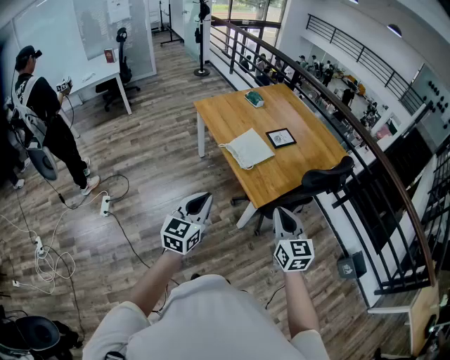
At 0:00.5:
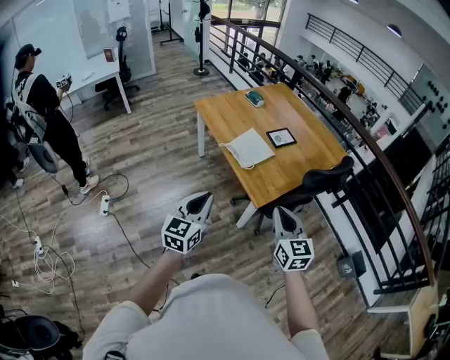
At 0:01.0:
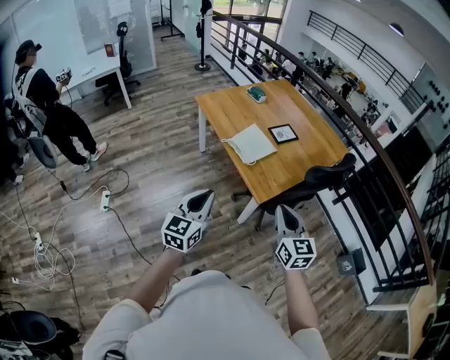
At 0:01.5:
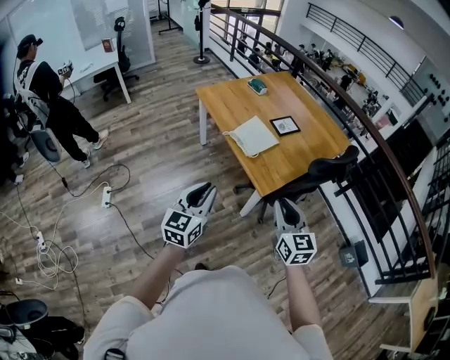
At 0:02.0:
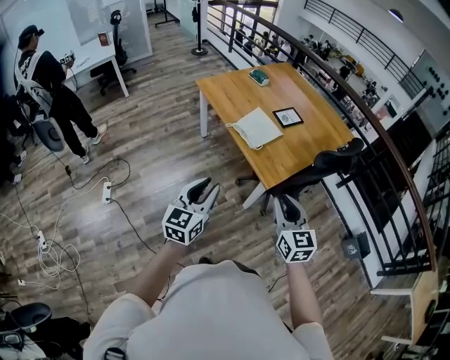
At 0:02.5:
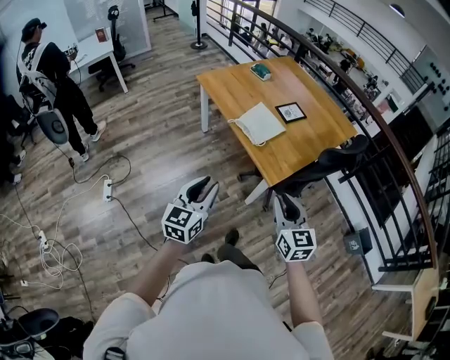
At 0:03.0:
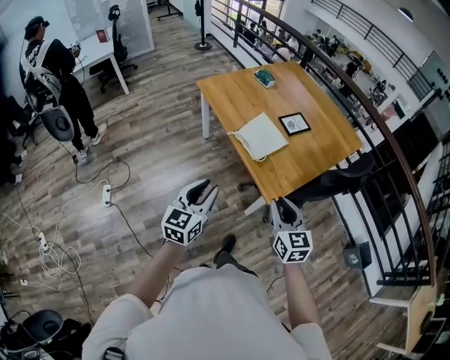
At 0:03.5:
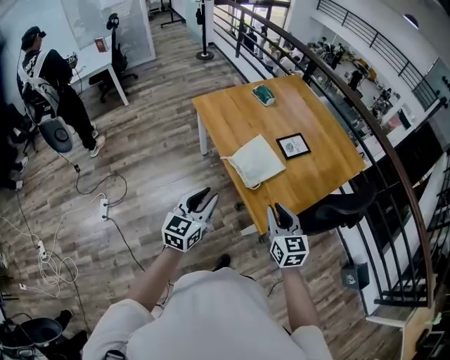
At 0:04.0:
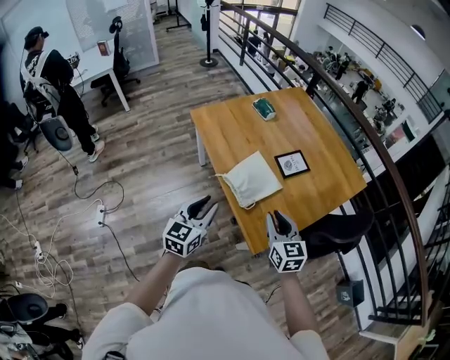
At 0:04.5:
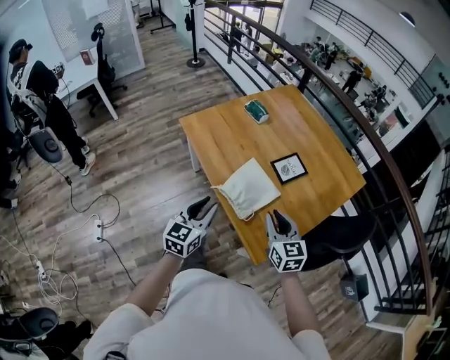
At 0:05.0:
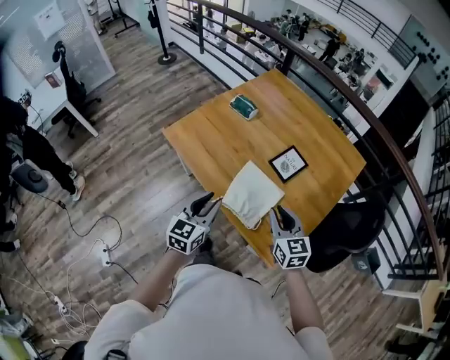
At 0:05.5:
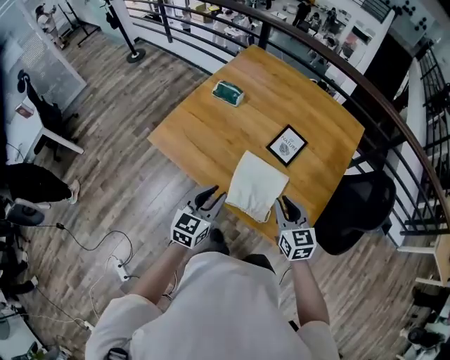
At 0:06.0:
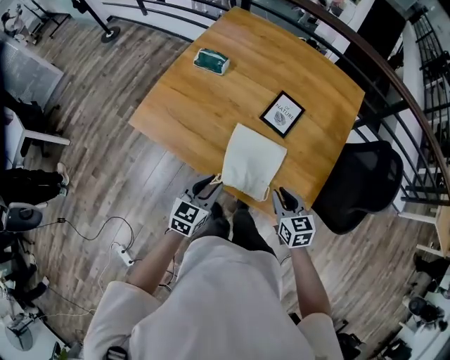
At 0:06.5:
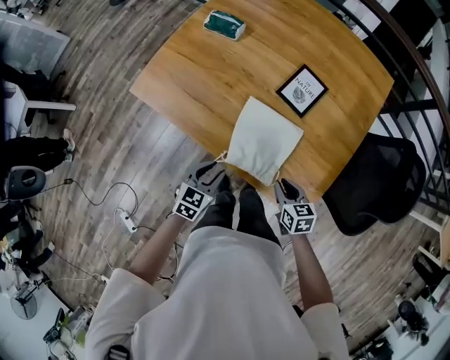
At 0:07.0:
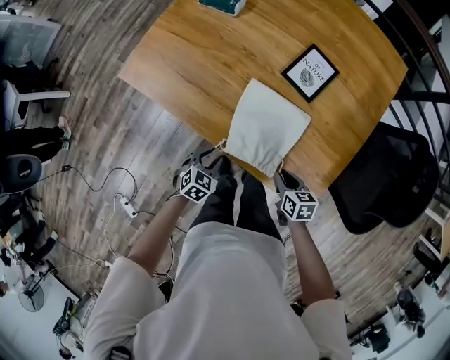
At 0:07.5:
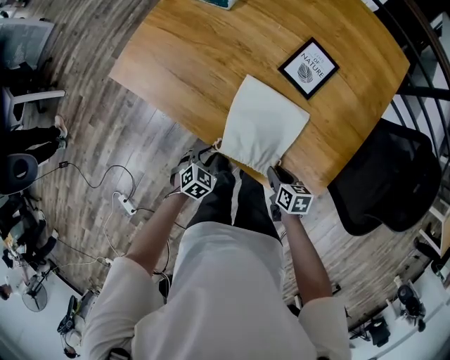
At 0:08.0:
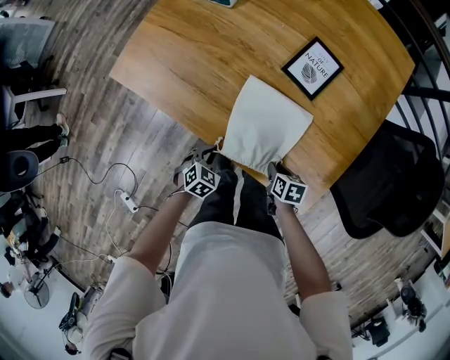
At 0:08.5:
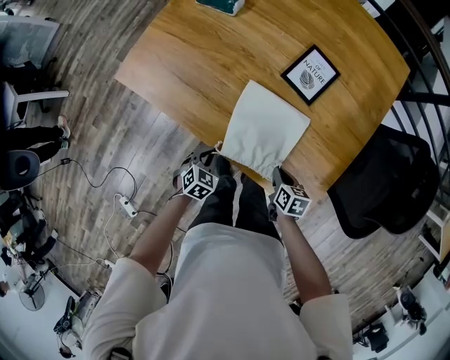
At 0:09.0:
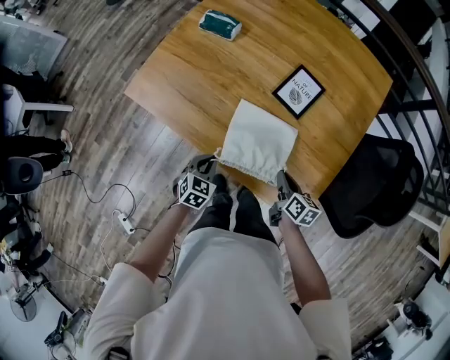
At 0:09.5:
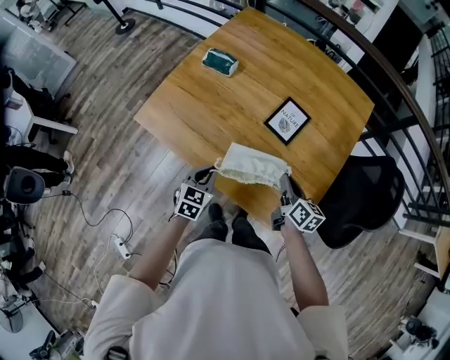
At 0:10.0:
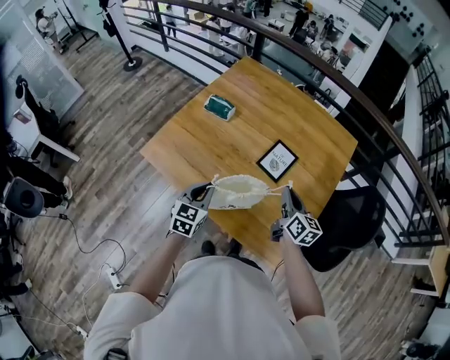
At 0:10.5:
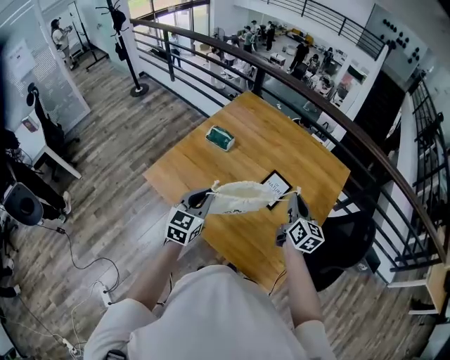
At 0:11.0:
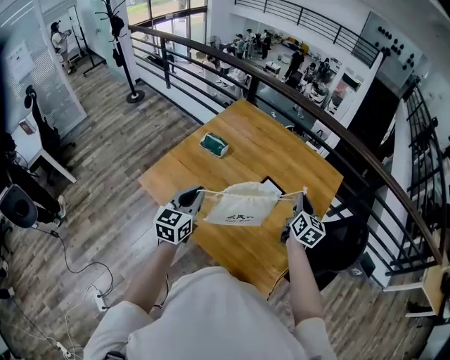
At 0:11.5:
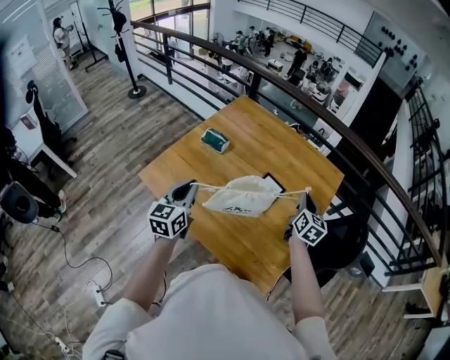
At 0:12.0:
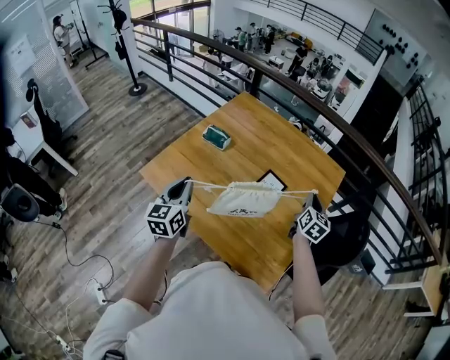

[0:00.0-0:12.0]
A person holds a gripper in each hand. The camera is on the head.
0:00.0 to 0:02.0: The grippers both shift to the left by some 5 cm. The left gripper opens up.
0:02.0 to 0:04.0: The two grippers go some 35 cm forward.
0:04.0 to 0:06.0: The left gripper moves some 30 cm, and changes its angle by roughly 40 degrees, while the right gripper changes place by some 20 cm, and turns by about 30 degrees.
0:06.0 to 0:08.0: The two grippers go about 25 cm downward. The left gripper tips its fingers downward by about 30 degrees, and closes. The right gripper swivels approximately 40 degrees.
0:08.0 to 0:10.0: The left gripper goes roughly 30 cm upward, and points its fingers about 40 degrees further upward. Meanwhile the right gripper shifts approximately 35 cm upward and forward, and angles its fingers upward, by roughly 50 degrees.
0:10.0 to 0:12.0: The left gripper moves upward and to the left, some 15 cm, and swivels roughly 30 degrees. The right gripper shifts some 15 cm to the right, forward and upward, and swivels some 30 degrees.

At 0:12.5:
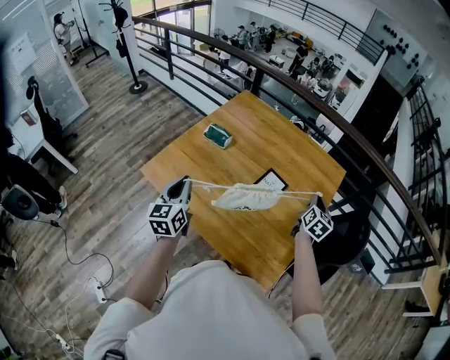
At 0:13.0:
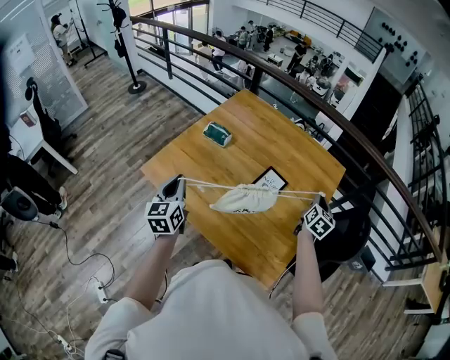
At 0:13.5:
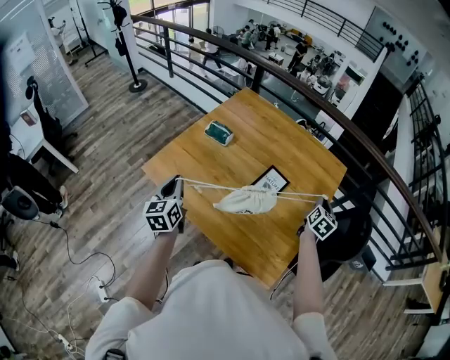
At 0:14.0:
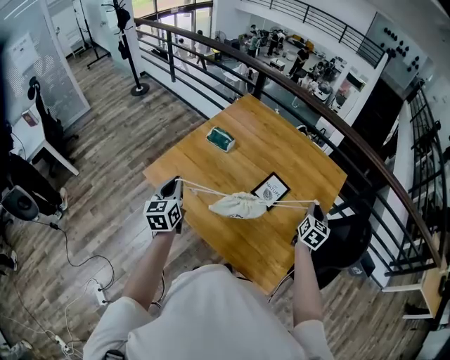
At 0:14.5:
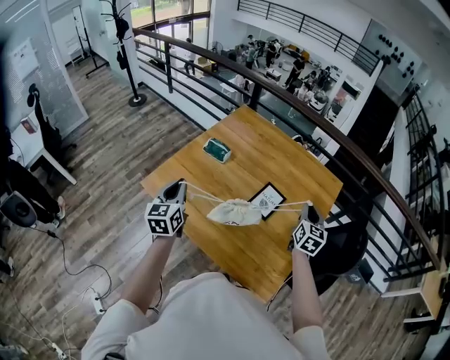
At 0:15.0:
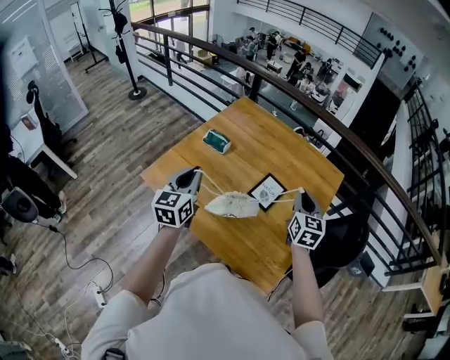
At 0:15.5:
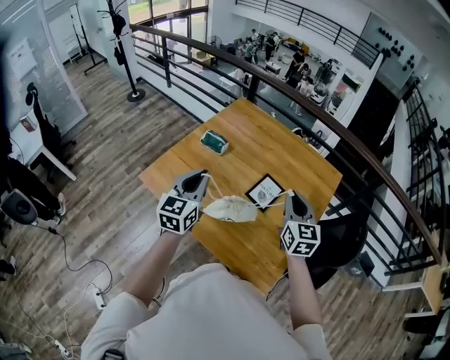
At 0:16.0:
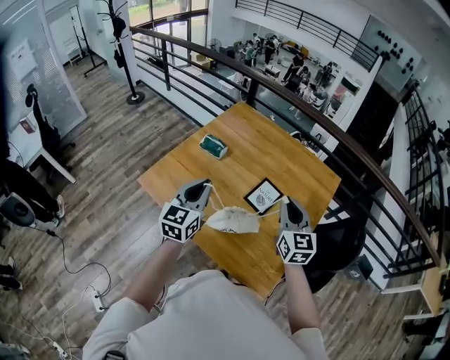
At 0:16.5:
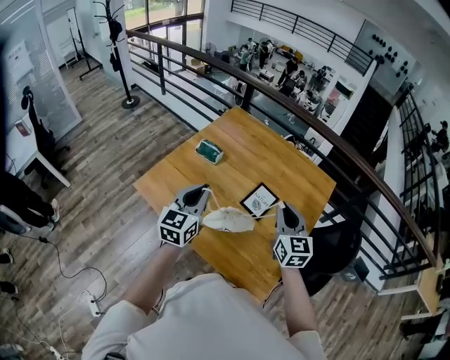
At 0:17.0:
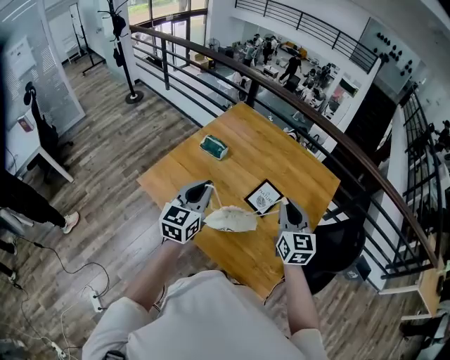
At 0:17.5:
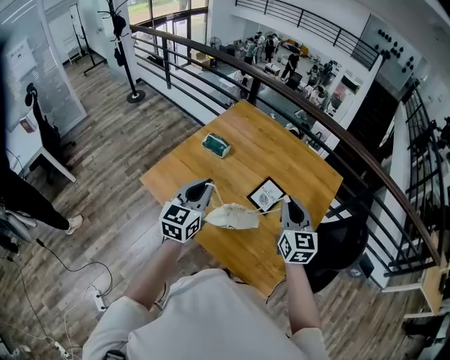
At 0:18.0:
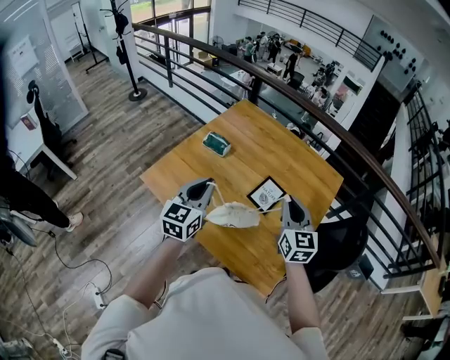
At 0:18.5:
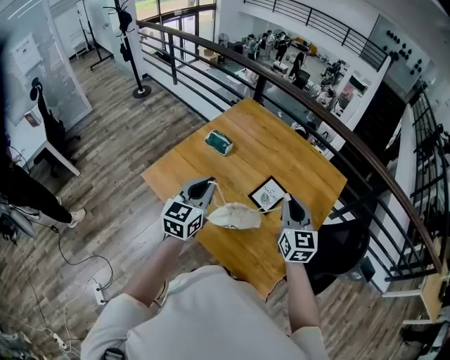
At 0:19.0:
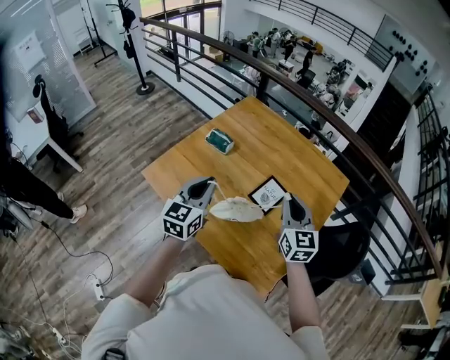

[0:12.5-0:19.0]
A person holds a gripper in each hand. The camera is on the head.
0:12.5 to 0:14.5: The right gripper travels to the left by roughly 5 cm.
0:14.5 to 0:17.0: The left gripper goes approximately 10 cm to the right. Meanwhile the right gripper is displaced to the left, upward and backward by approximately 15 cm, and turns by roughly 20 degrees.
0:17.0 to 0:19.0: There are only small adjustments of the grippers.

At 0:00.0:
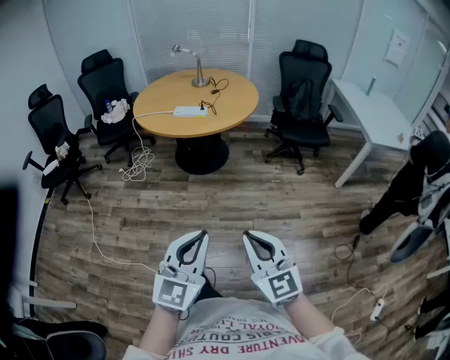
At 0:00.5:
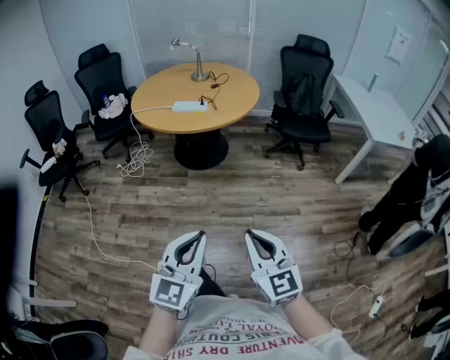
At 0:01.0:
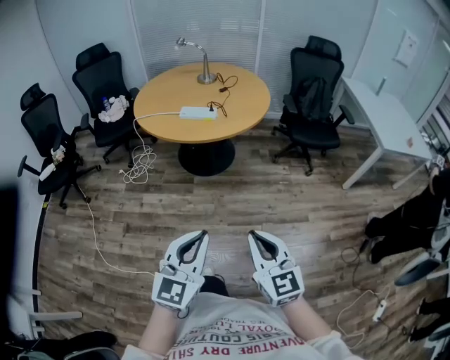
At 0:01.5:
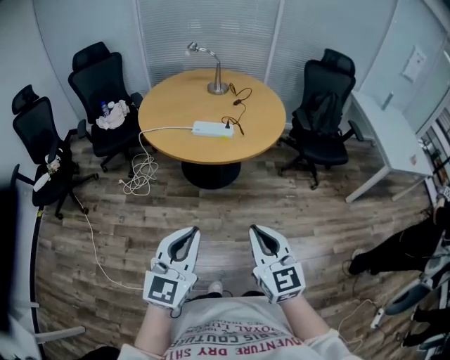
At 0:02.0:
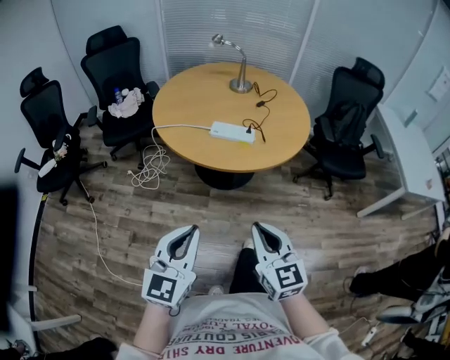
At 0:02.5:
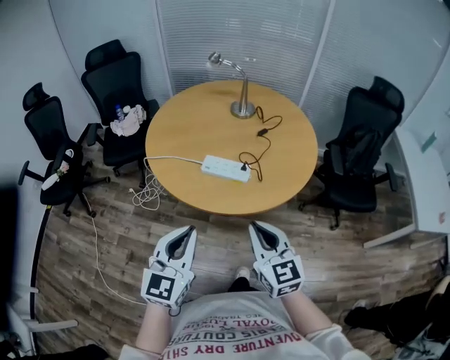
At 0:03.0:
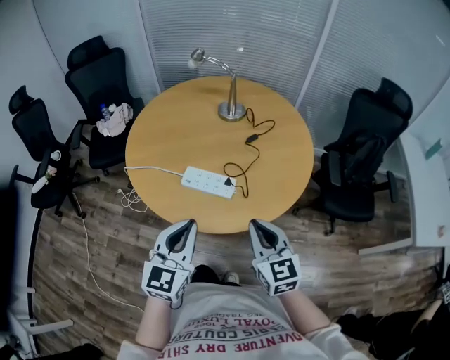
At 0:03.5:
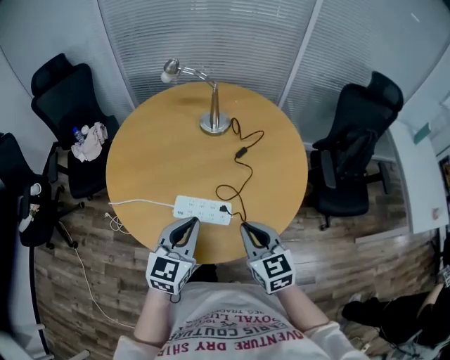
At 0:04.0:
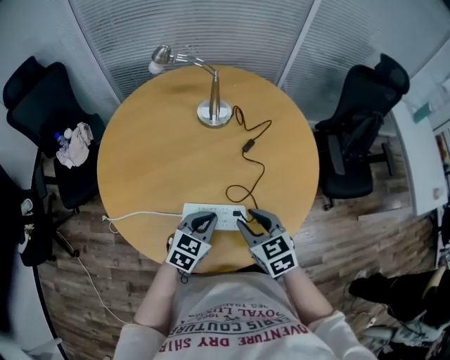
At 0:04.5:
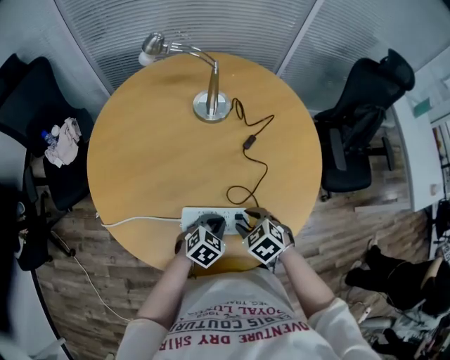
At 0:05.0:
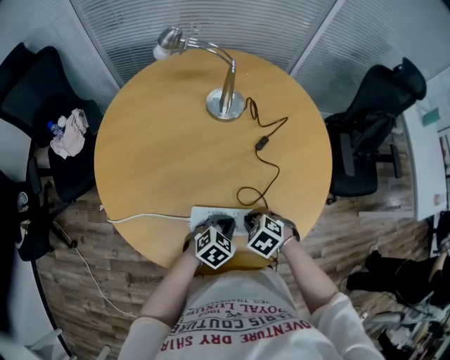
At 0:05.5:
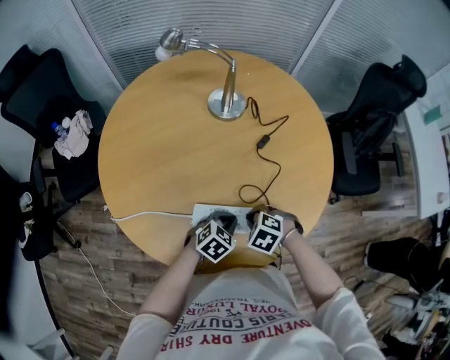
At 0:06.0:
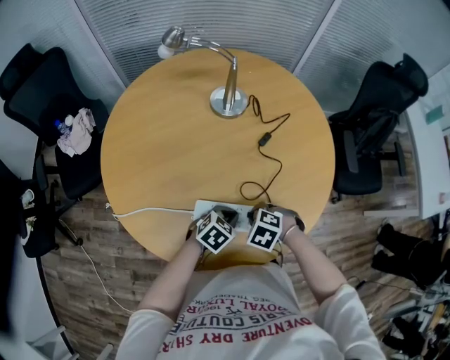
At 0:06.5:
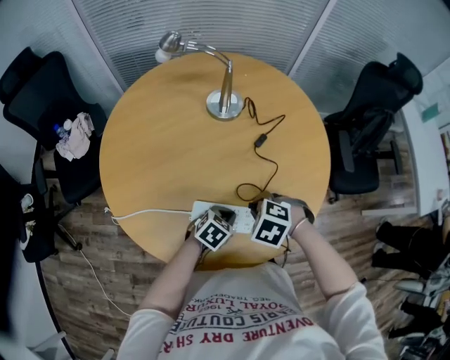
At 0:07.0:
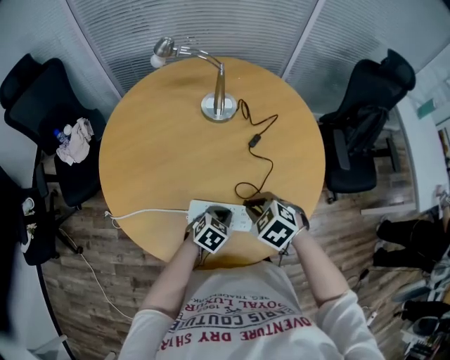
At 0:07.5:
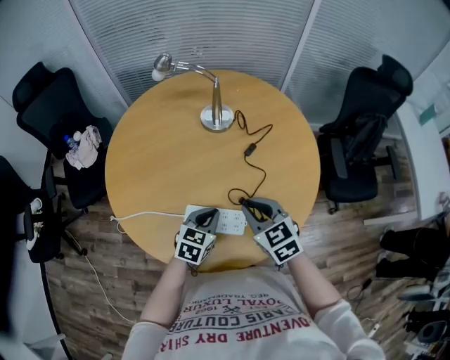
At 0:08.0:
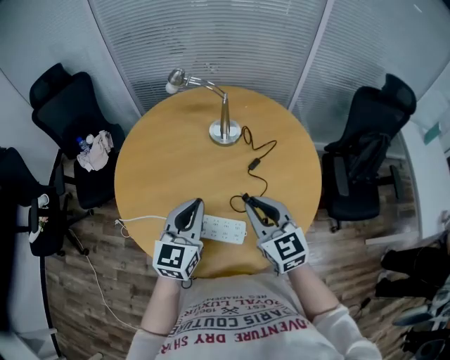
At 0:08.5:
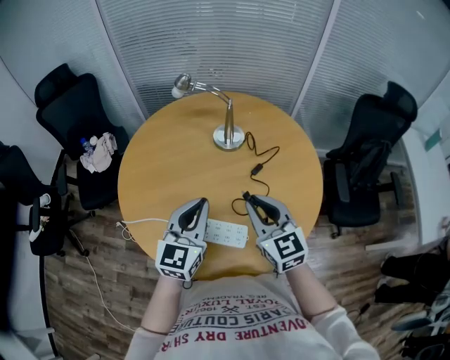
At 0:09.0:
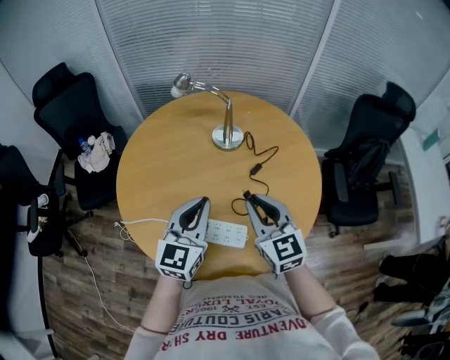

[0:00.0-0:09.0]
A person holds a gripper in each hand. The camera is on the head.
0:00.0 to 0:02.0: The two grippers travel together, forward and to the left, about 40 cm.
0:02.0 to 0:04.5: The pair of grippers is taken forward, approximately 50 cm. Both grippers travel together downward, roughly 30 cm. The right gripper tilts its fingers roughly 50 degrees downward, and opens up; the left gripper tilts its fingers approximately 40 degrees downward.
0:04.5 to 0:07.0: The right gripper is displaced upward by some 5 cm, and closes its fingers.
0:07.0 to 0:09.0: The right gripper travels upward by about 20 cm, and points its fingers approximately 50 degrees further upward, while the left gripper goes roughly 30 cm upward, and points its fingers roughly 50 degrees further upward.
